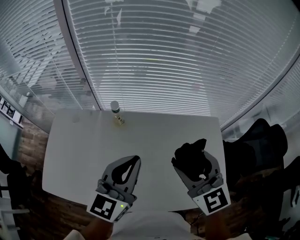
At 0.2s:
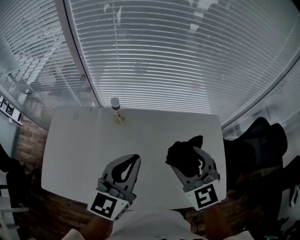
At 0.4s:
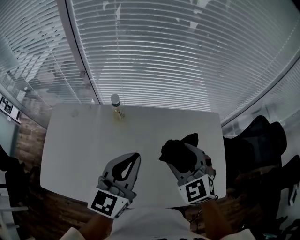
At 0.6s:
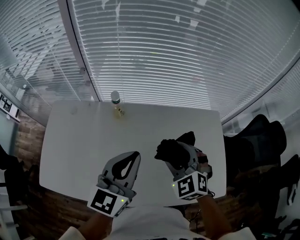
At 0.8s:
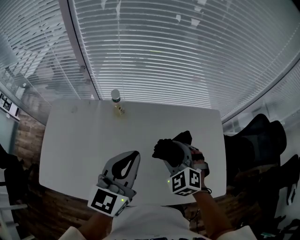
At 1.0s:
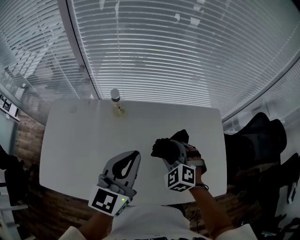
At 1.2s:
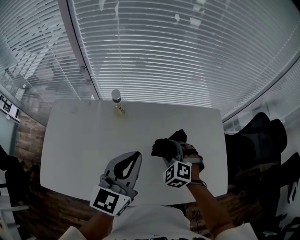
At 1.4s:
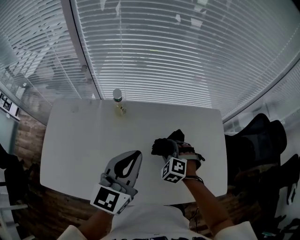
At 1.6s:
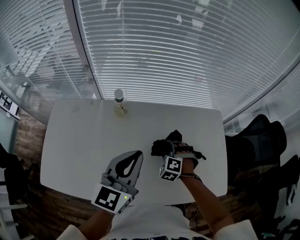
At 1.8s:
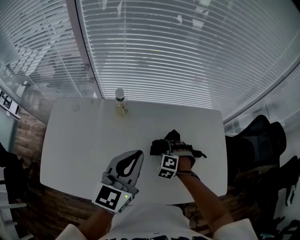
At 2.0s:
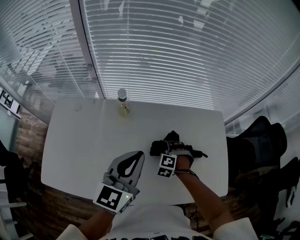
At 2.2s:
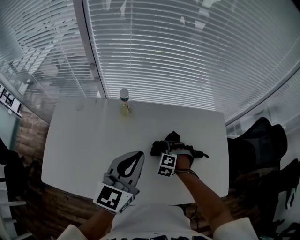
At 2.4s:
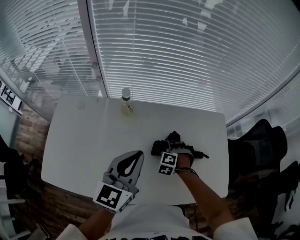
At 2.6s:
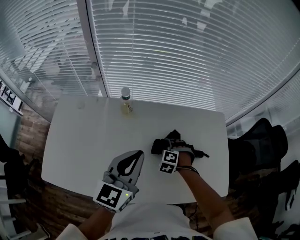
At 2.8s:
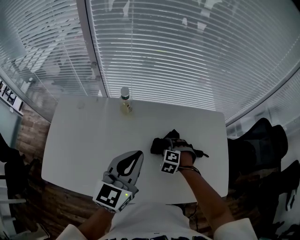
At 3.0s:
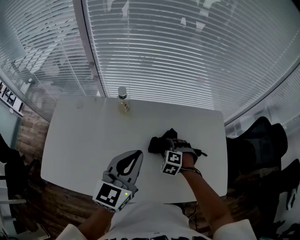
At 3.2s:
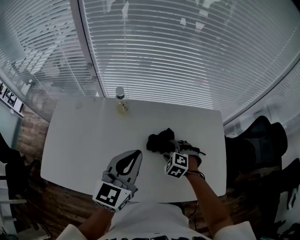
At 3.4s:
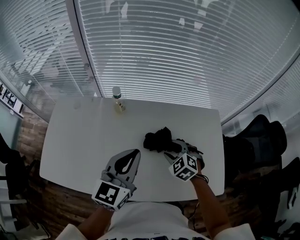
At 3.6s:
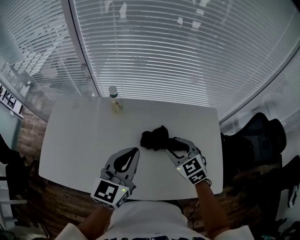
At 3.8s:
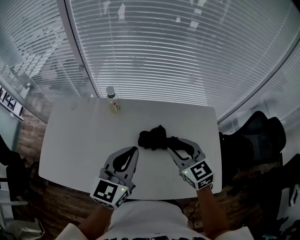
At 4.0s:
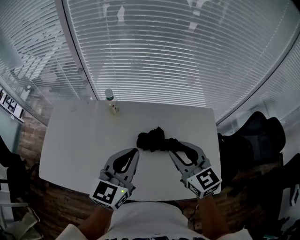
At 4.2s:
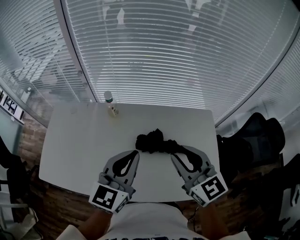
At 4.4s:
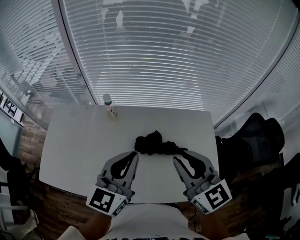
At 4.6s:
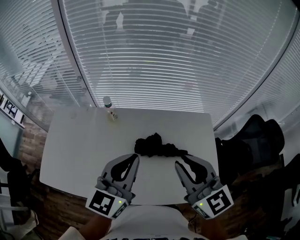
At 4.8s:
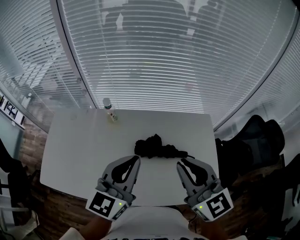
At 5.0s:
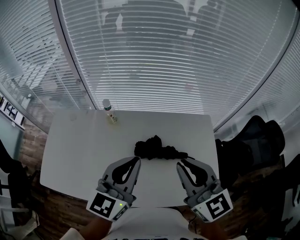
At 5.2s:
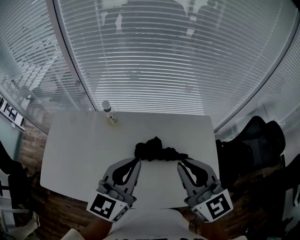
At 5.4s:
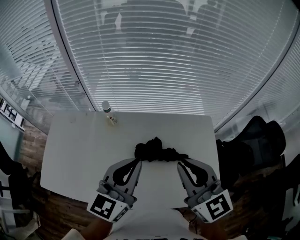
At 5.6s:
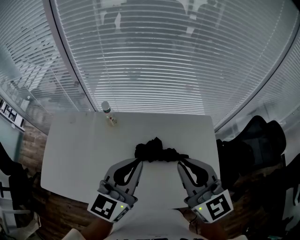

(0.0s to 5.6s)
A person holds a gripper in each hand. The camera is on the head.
0.0s - 1.4s: The right gripper goes about 25 cm downward, and tilts its fingers approximately 40 degrees downward.
1.4s - 2.8s: The right gripper shifts about 5 cm downward.
2.8s - 4.2s: The left gripper shifts about 10 cm to the right; the right gripper travels upward by some 30 cm, angles its fingers upward, by some 50 degrees, and closes up.
4.2s - 5.6s: The right gripper travels upward by approximately 5 cm.

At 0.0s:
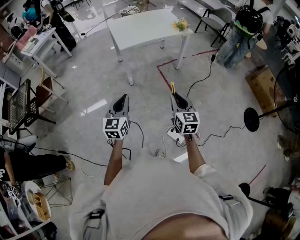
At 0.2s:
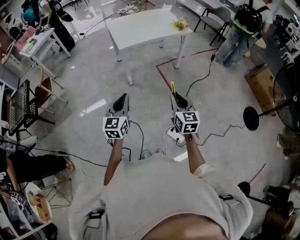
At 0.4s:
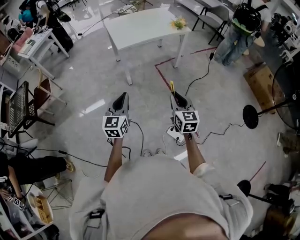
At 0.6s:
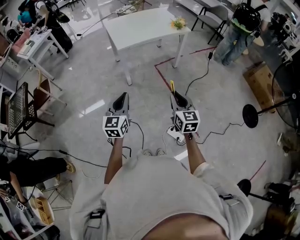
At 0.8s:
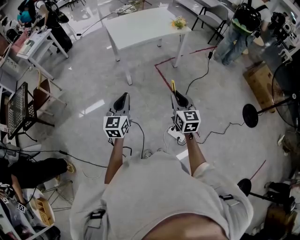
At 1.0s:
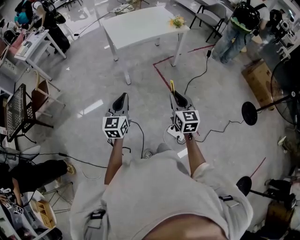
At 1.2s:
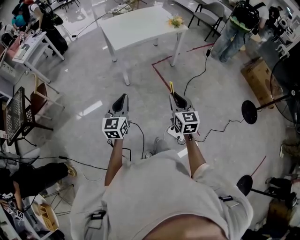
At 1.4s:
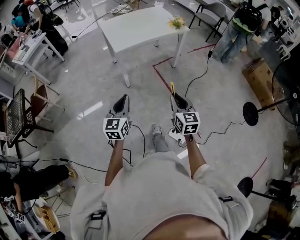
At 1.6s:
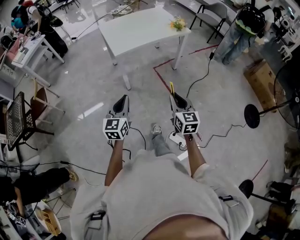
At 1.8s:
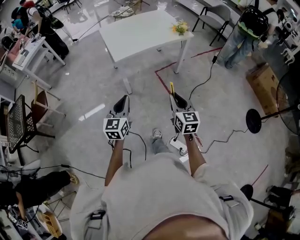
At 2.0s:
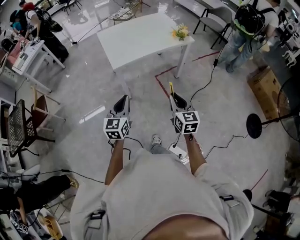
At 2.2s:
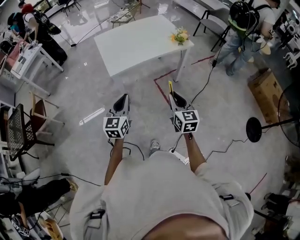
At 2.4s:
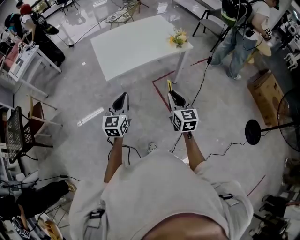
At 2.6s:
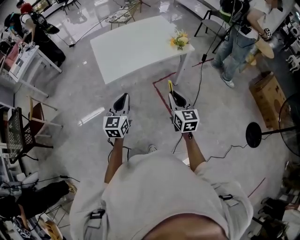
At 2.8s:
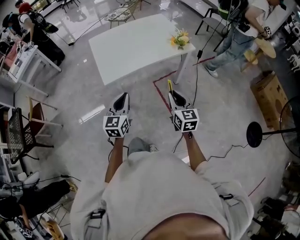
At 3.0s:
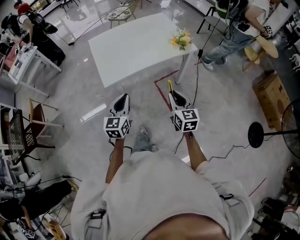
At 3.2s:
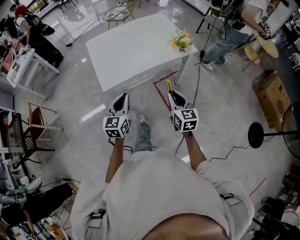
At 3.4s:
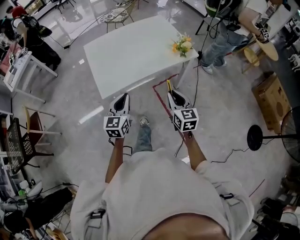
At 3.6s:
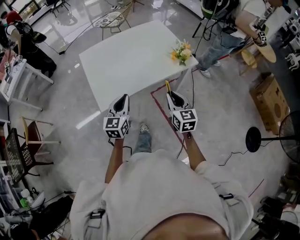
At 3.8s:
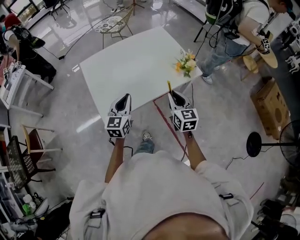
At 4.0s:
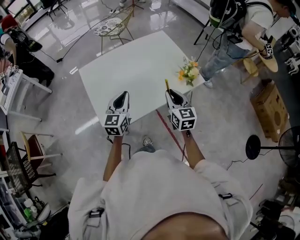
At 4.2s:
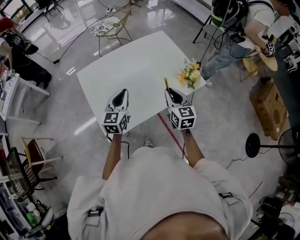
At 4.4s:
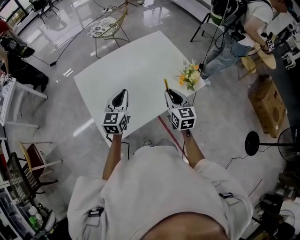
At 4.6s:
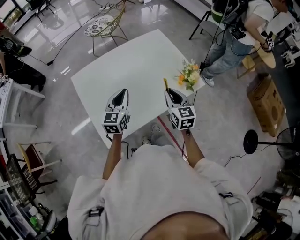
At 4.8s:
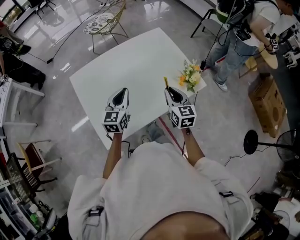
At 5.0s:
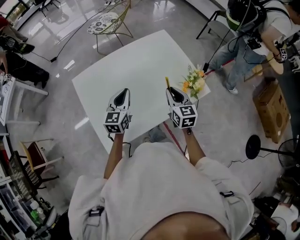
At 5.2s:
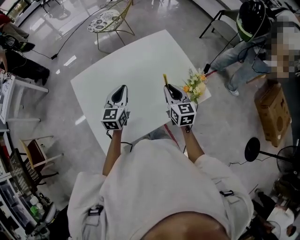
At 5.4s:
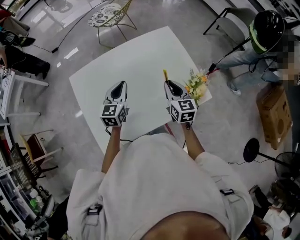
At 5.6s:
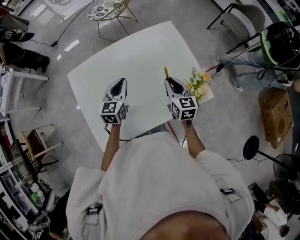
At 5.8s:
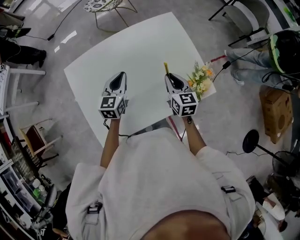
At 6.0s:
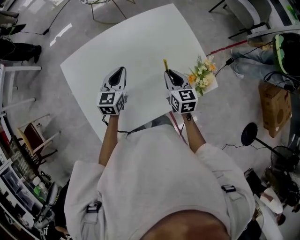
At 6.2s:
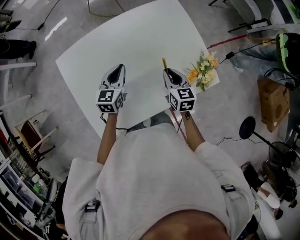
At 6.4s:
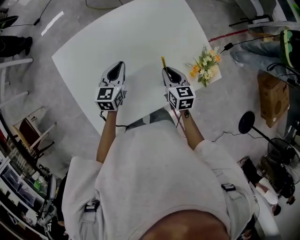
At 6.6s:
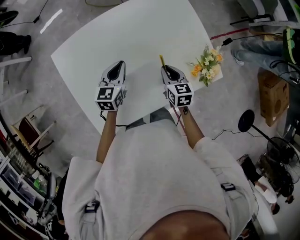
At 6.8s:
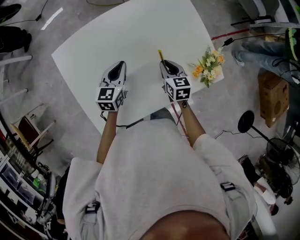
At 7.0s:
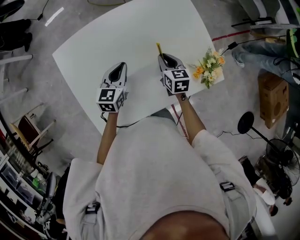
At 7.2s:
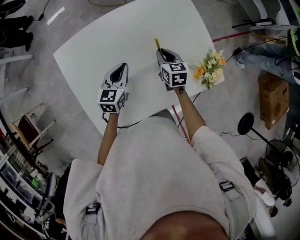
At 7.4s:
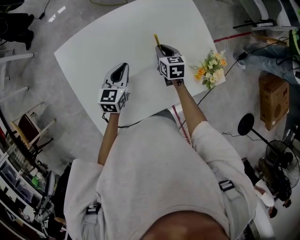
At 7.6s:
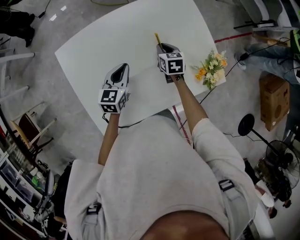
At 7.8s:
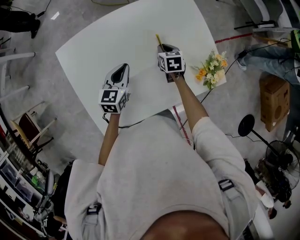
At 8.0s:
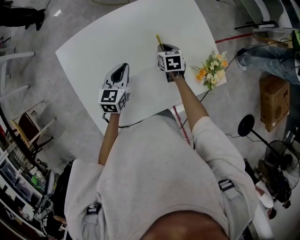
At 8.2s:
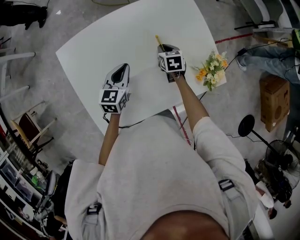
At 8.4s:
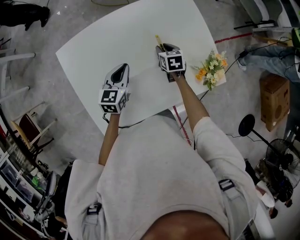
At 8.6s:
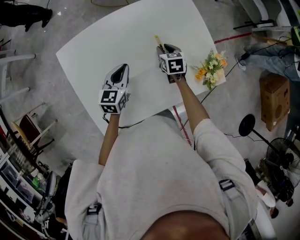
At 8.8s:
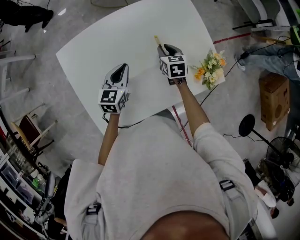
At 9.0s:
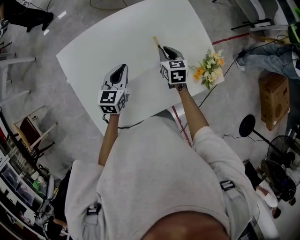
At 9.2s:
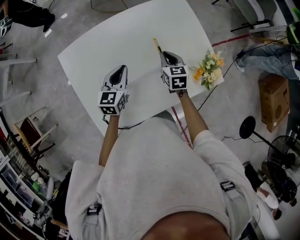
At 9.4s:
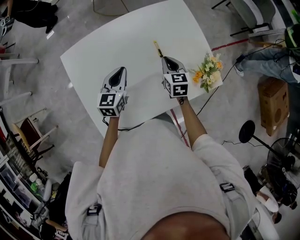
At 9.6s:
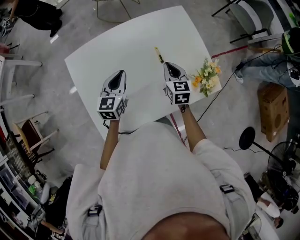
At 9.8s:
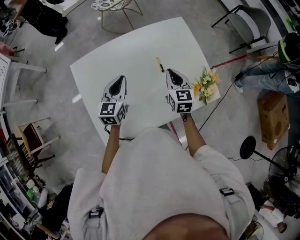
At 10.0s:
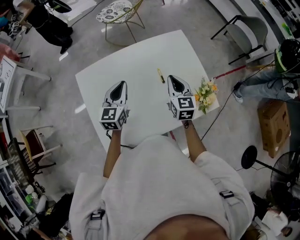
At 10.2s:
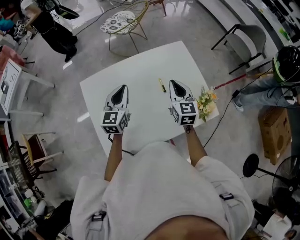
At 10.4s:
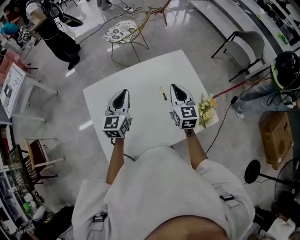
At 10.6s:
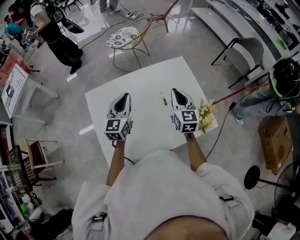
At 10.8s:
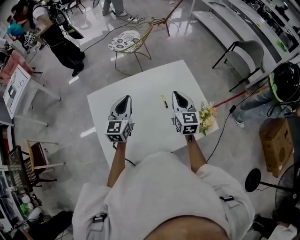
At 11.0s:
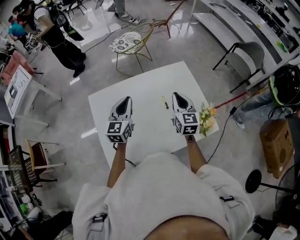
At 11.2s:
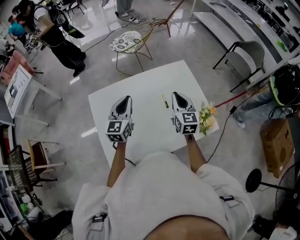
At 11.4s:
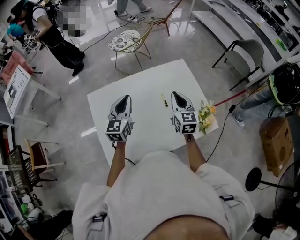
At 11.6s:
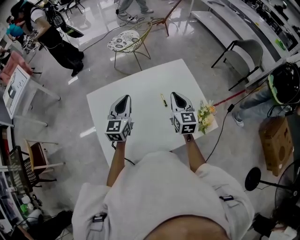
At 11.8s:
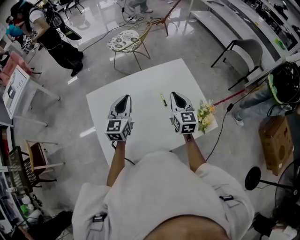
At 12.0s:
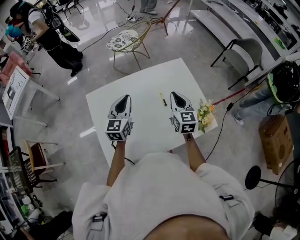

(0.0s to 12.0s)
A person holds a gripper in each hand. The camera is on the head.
0.0s - 1.6s: The two grippers go about 10 cm forward.
1.6s - 3.0s: Both grippers travel together forward, roughly 25 cm.
3.0s - 4.4s: The two grippers go about 35 cm forward.
4.4s - 6.0s: The two grippers go some 15 cm forward and downward.
6.0s - 7.6s: The left gripper ends up approximately 5 cm from where it was; the right gripper goes some 15 cm downward, forward and to the left.
7.6s - 9.0s: The grippers stay close to where they were, moving slightly.
9.0s - 10.4s: Both grippers travel together upward, about 15 cm. The left gripper changes its angle by roughly 20 degrees. The right gripper swivels about 30 degrees.
10.4s - 12.0s: Both grippers stay about where they are.

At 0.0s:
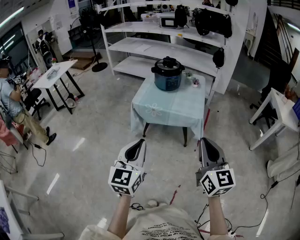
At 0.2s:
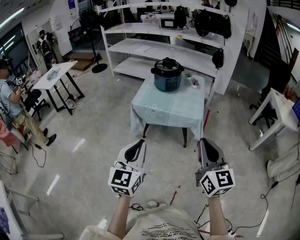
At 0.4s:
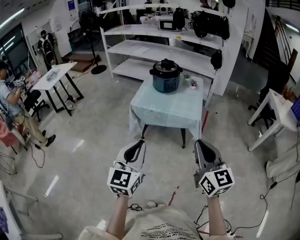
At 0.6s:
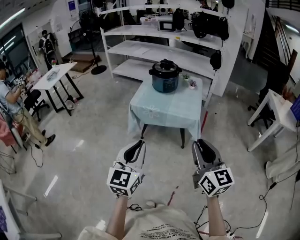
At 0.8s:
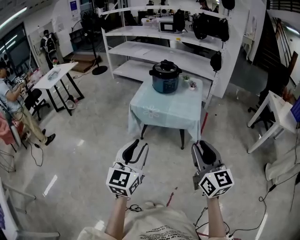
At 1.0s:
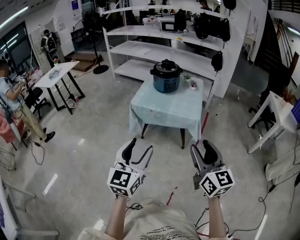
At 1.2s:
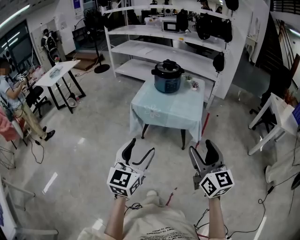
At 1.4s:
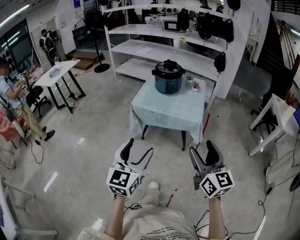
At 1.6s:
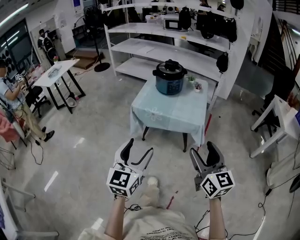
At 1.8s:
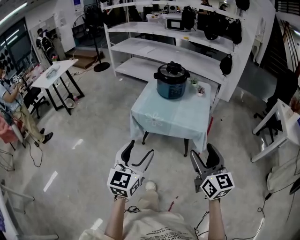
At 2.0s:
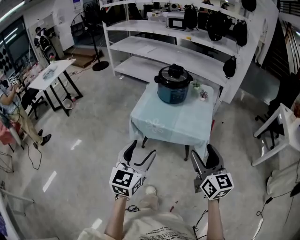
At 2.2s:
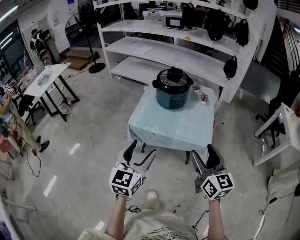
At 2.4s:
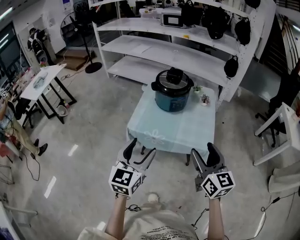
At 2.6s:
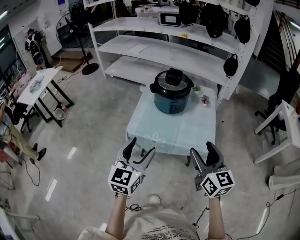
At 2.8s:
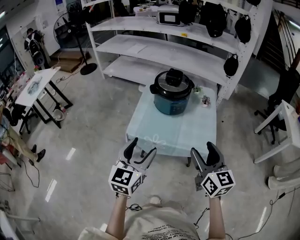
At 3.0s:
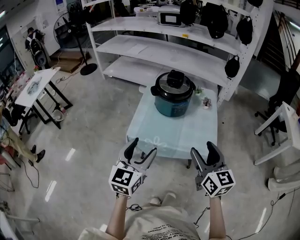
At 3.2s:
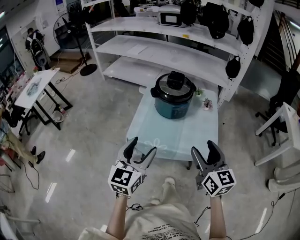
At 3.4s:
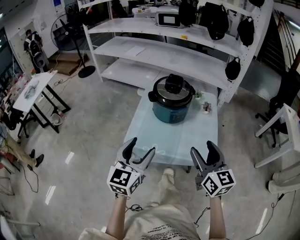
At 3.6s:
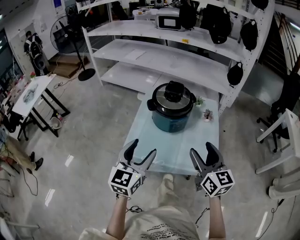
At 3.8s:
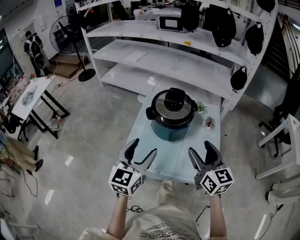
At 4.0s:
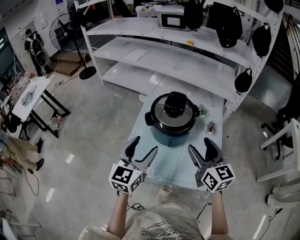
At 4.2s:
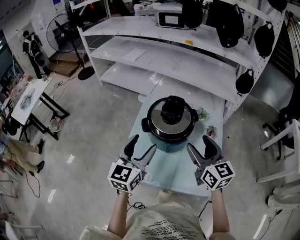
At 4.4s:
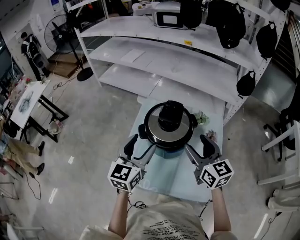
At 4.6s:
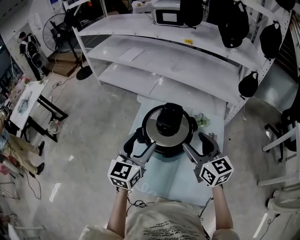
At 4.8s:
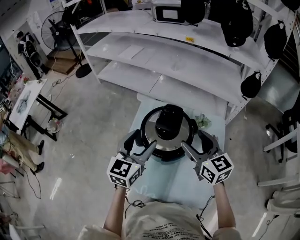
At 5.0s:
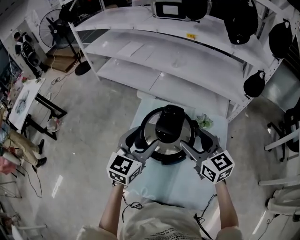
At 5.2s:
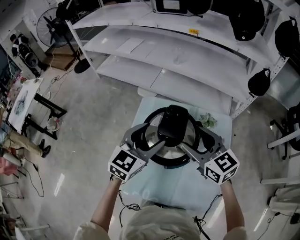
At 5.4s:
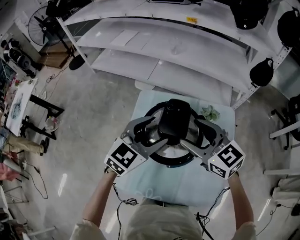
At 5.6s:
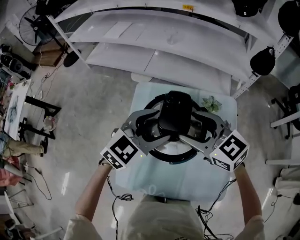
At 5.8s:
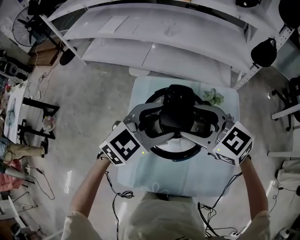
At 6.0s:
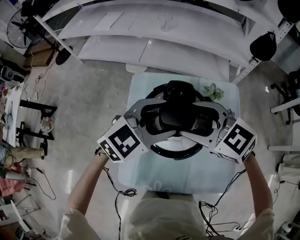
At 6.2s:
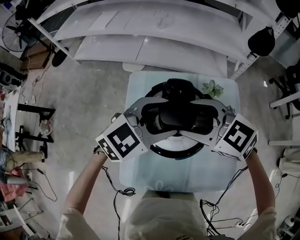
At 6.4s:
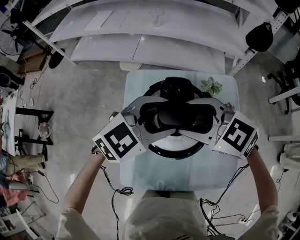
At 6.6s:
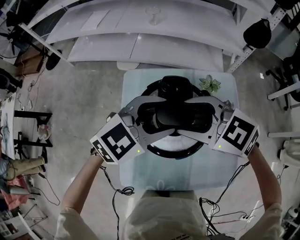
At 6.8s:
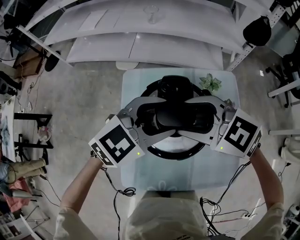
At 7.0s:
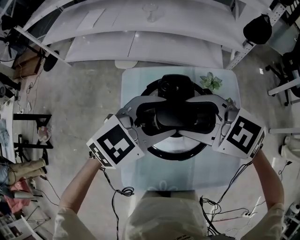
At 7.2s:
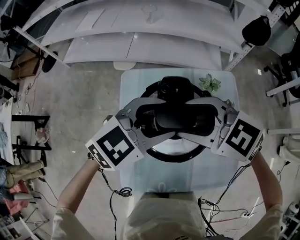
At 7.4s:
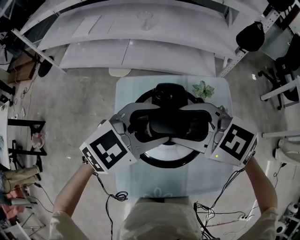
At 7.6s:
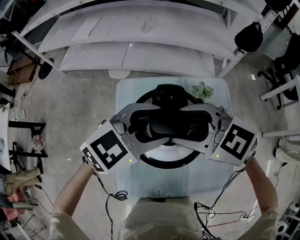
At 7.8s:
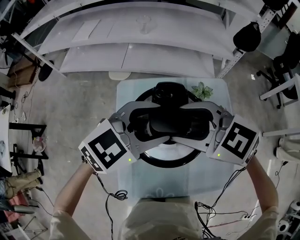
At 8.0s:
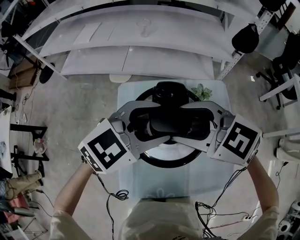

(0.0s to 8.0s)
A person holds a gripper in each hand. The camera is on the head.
0.0s - 1.6s: The left gripper opens its fingers; the right gripper shifts by roughly 5 cm, and opens.
1.6s - 3.2s: The two grippers go roughly 30 cm forward.
3.2s - 4.8s: Both grippers move forward, some 35 cm.
4.8s - 6.4s: The left gripper shifts by approximately 10 cm, and swivels about 60 degrees. The right gripper shifts by roughly 10 cm, and rotates some 30 degrees.
6.4s - 8.0s: There are only small adjustments of the grippers.
